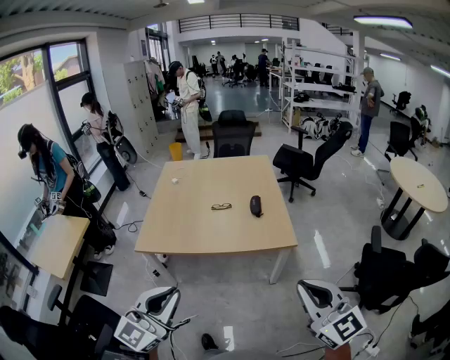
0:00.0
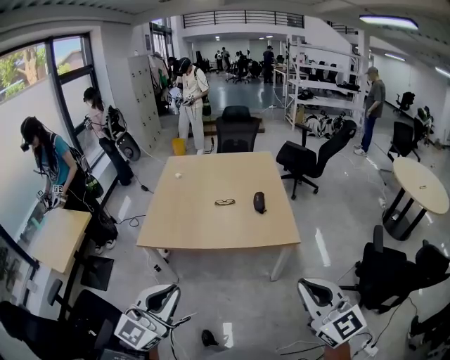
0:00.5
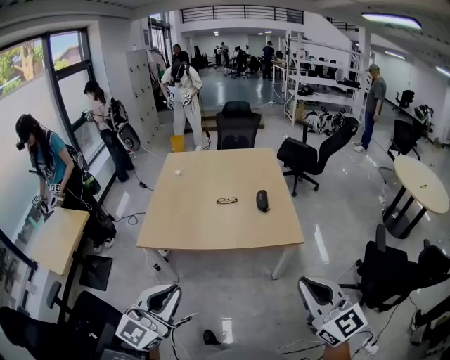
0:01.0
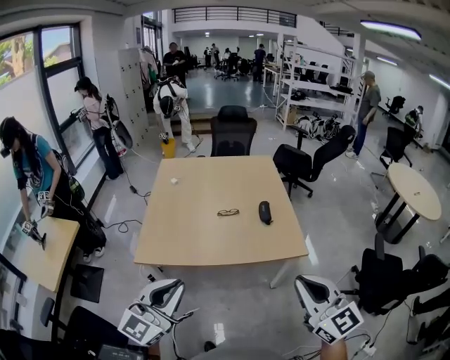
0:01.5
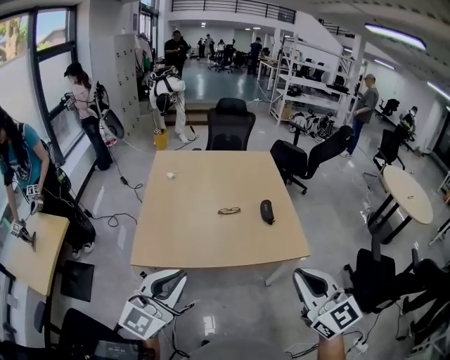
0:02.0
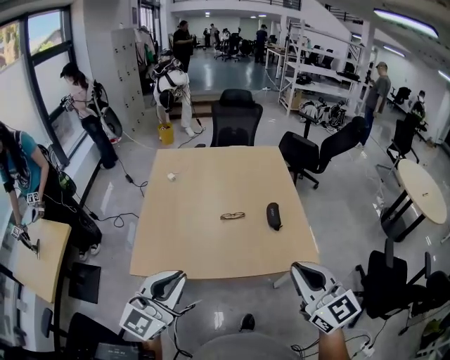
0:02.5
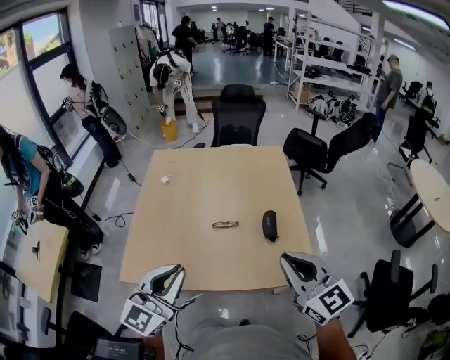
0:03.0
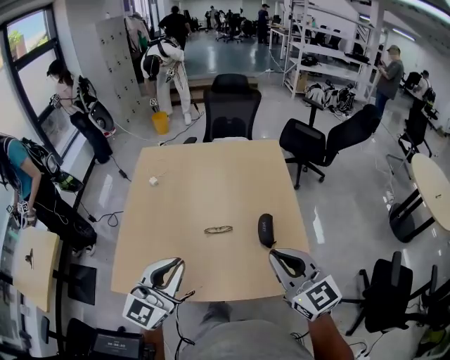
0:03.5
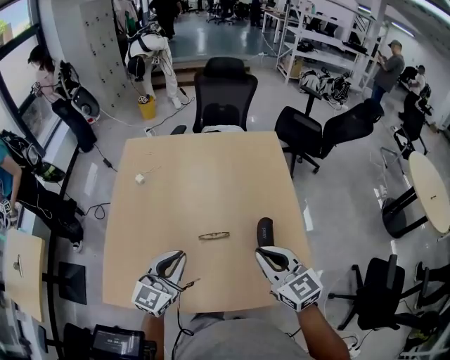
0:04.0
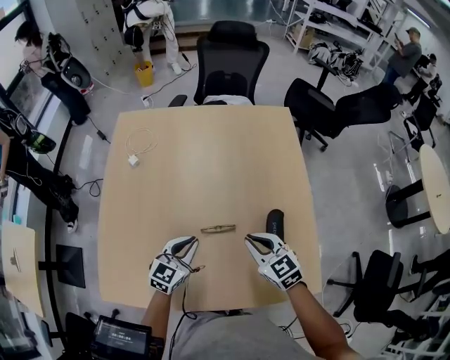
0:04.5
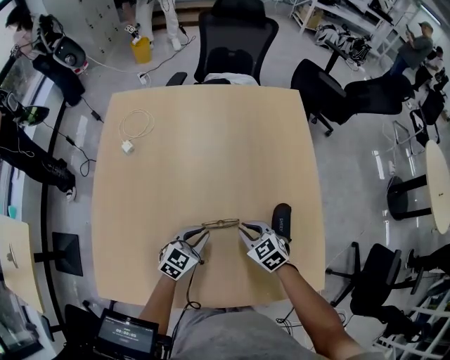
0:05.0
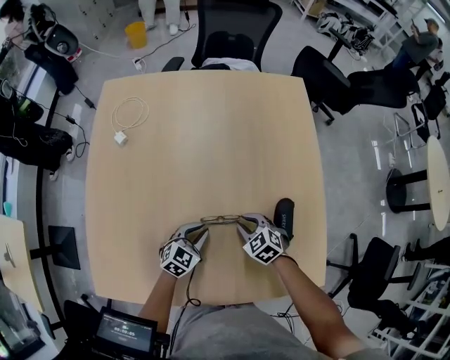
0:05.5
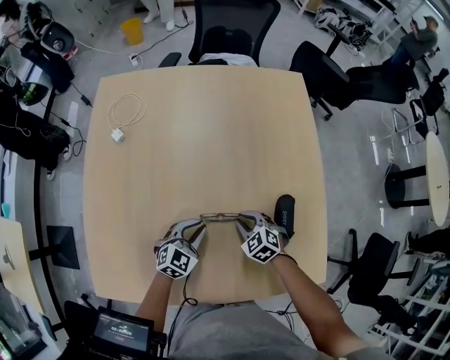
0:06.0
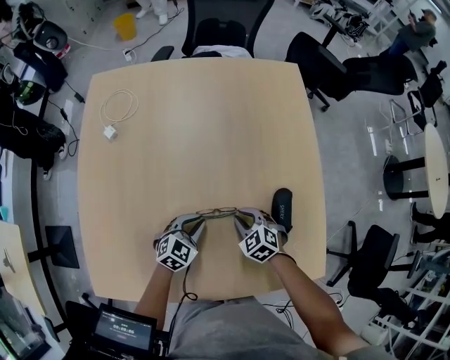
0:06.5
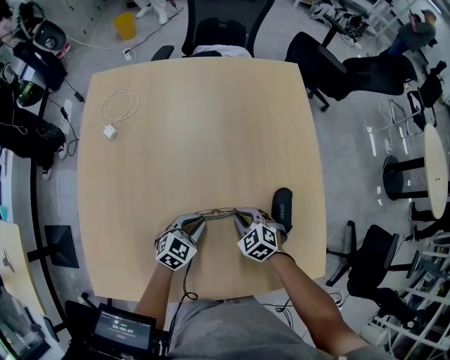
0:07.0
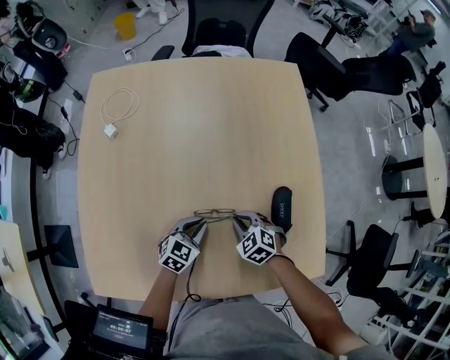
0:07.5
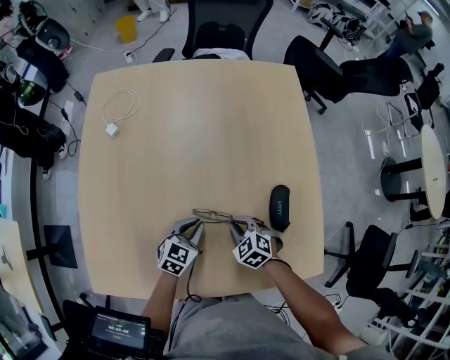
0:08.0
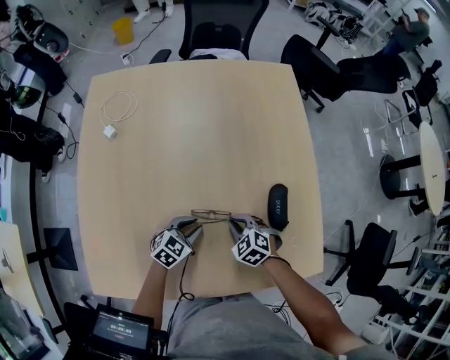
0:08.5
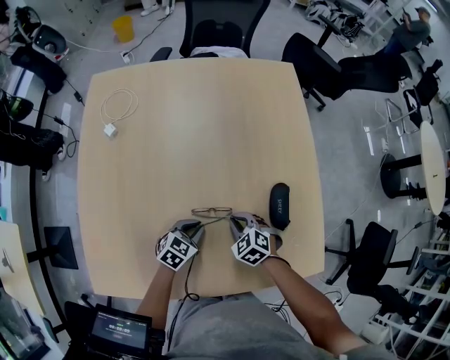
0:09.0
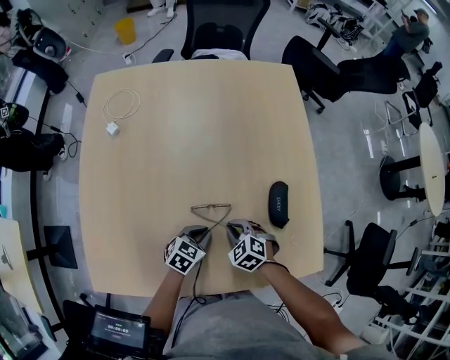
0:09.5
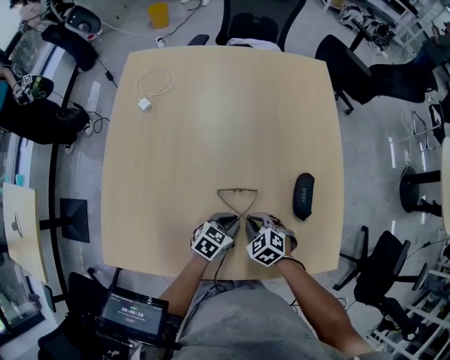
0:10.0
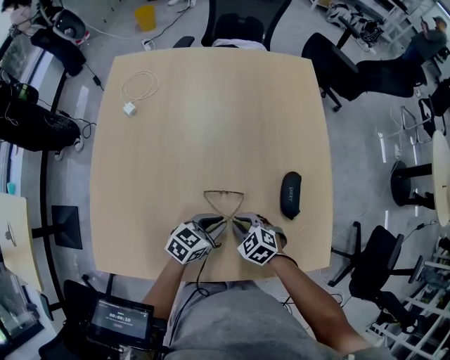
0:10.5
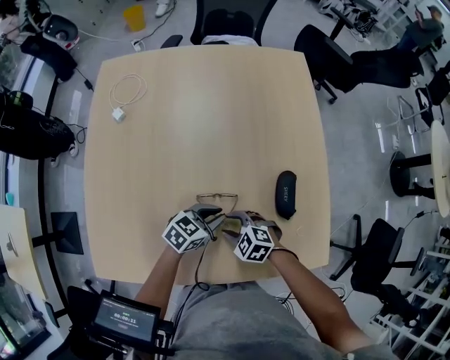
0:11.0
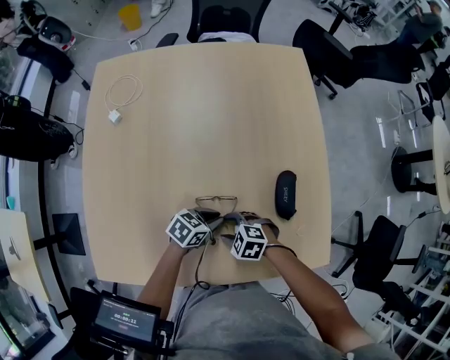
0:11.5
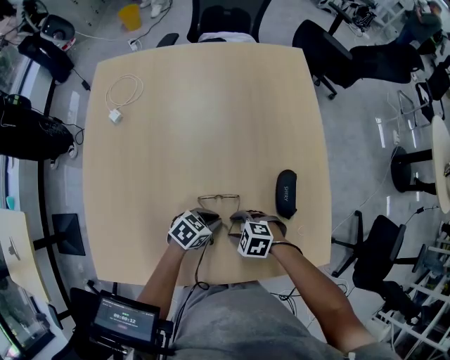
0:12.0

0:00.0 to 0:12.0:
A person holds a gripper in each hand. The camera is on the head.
0:00.0 to 0:02.0: The left gripper moves forward and to the left, some 30 cm; the right gripper travels to the left and forward by approximately 30 cm.
0:02.0 to 0:04.0: The two grippers travel together, forward, some 50 cm. The grippers both shift downward by roughly 20 cm.
0:04.0 to 0:06.0: The grippers both shift downward and forward by roughly 35 cm. The right gripper tips its fingers downward by about 40 degrees, while the left gripper swivels some 30 degrees.
0:06.0 to 0:08.0: There are only small adjustments of the grippers.
0:08.0 to 0:10.0: The left gripper goes approximately 10 cm to the right and backward. Meanwhile the right gripper is displaced backward by approximately 5 cm.
0:10.0 to 0:12.0: The right gripper rotates approximately 30 degrees, and opens up.

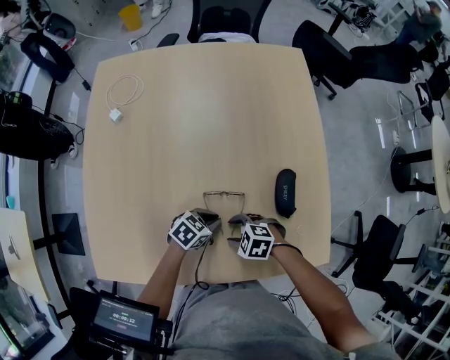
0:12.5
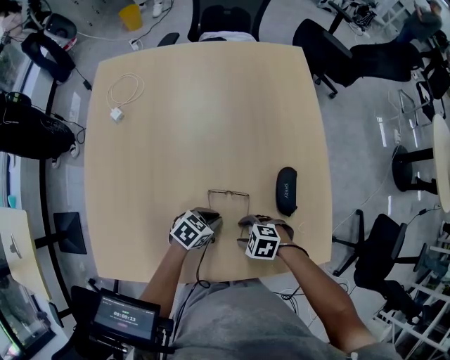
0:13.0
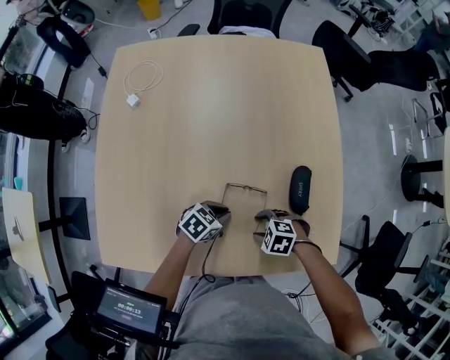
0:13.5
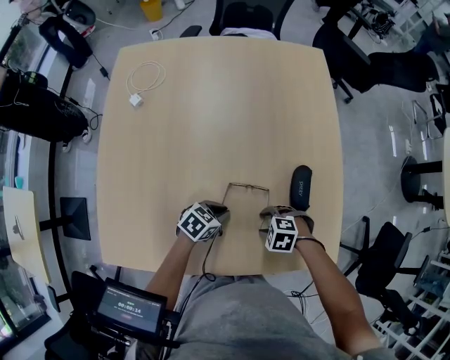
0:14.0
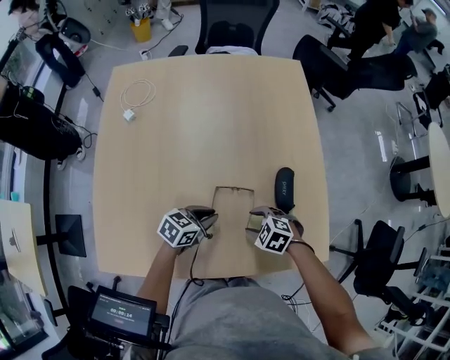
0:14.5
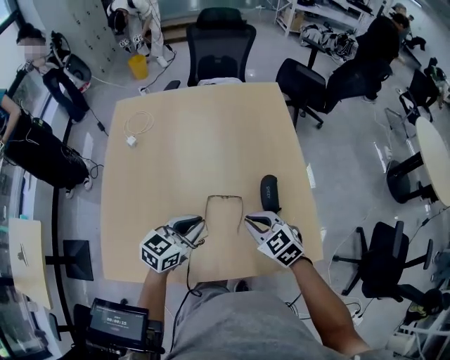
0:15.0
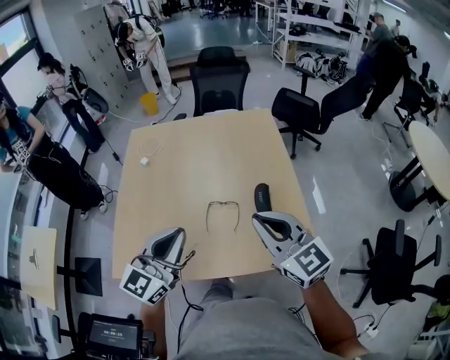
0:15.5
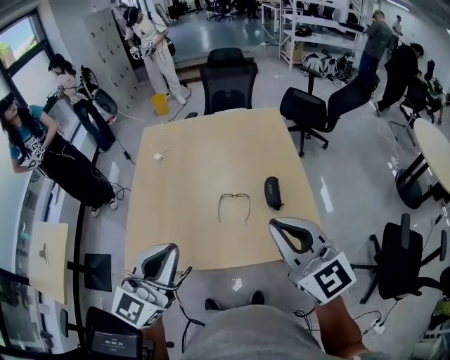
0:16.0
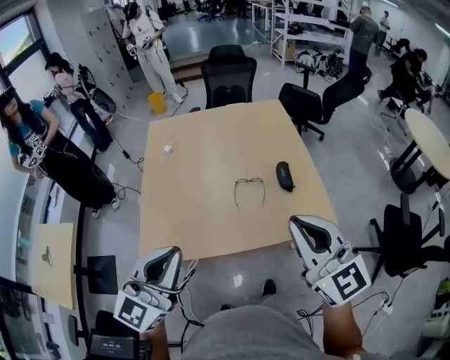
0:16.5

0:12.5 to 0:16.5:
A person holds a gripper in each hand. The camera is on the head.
0:12.5 to 0:14.5: The right gripper shifts by about 5 cm. Meanwhile the left gripper travels upward by approximately 5 cm.
0:14.5 to 0:16.5: Both grippers move upward, approximately 50 cm. The right gripper angles its fingers upward, by some 70 degrees, and closes its fingers. The left gripper points its fingers about 40 degrees further upward.

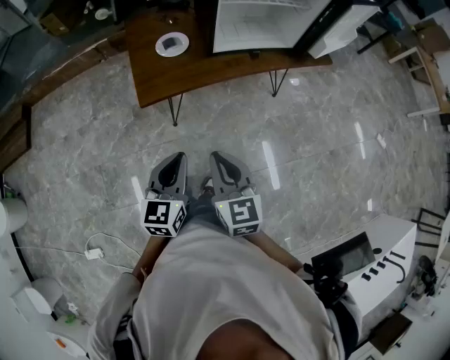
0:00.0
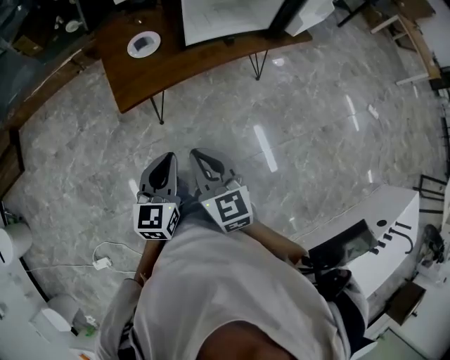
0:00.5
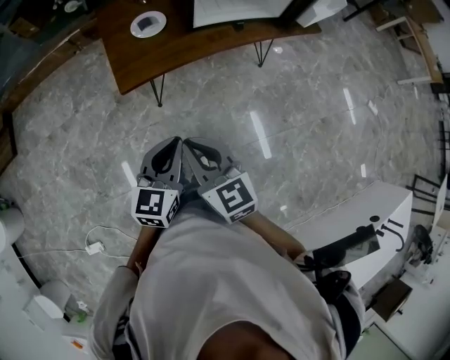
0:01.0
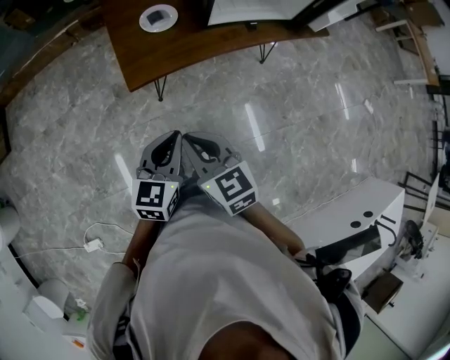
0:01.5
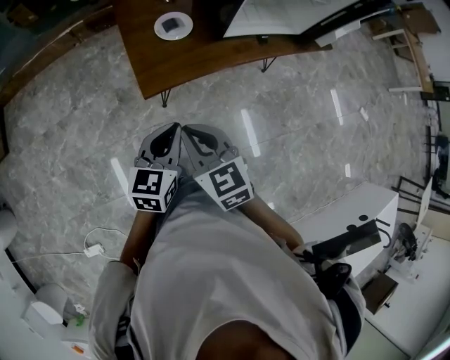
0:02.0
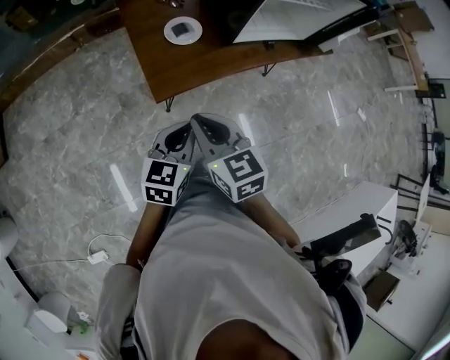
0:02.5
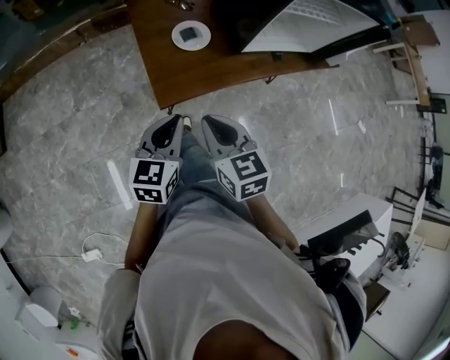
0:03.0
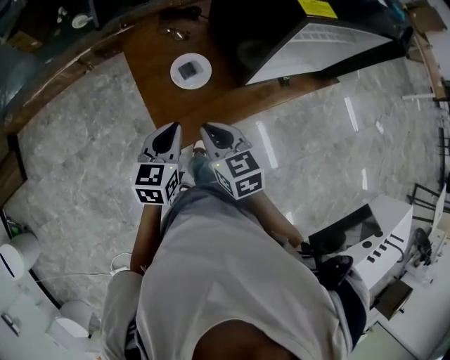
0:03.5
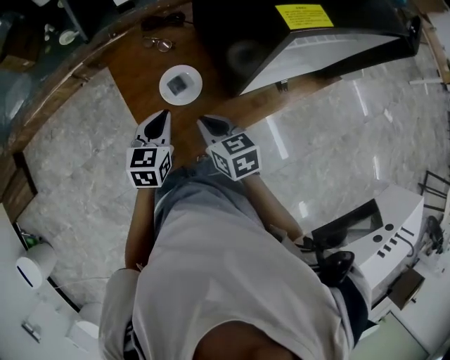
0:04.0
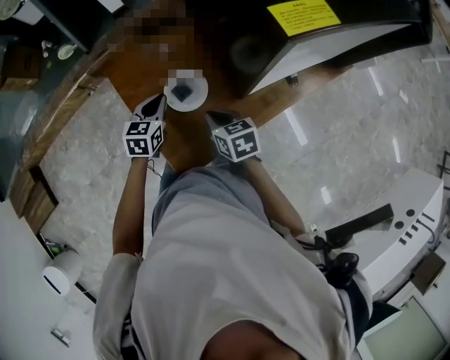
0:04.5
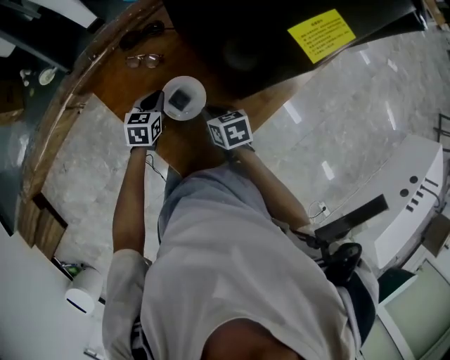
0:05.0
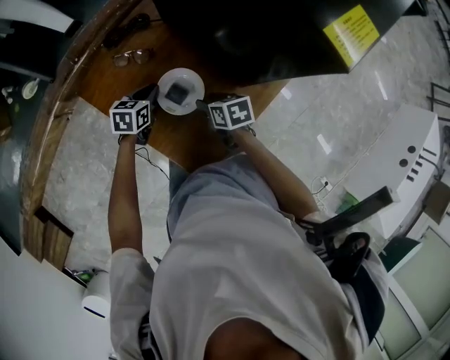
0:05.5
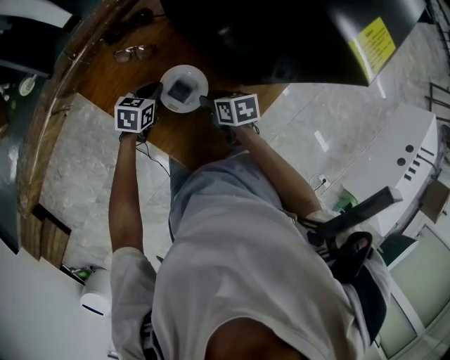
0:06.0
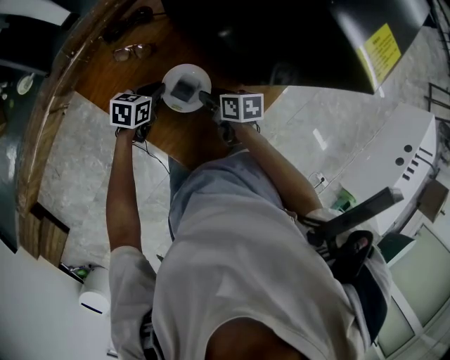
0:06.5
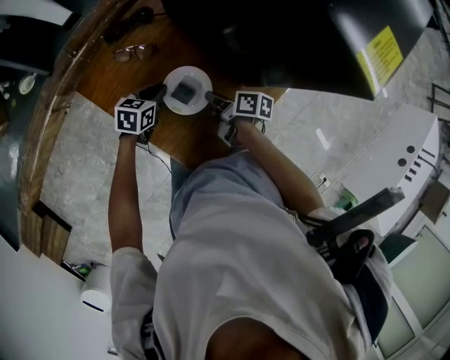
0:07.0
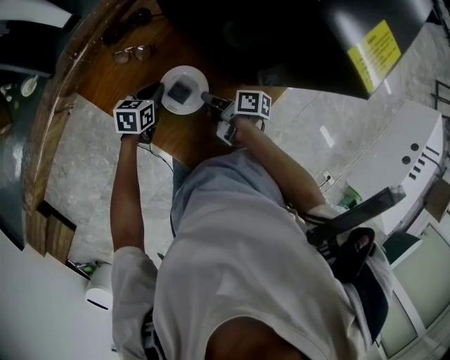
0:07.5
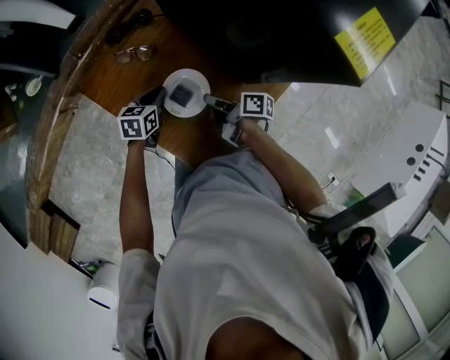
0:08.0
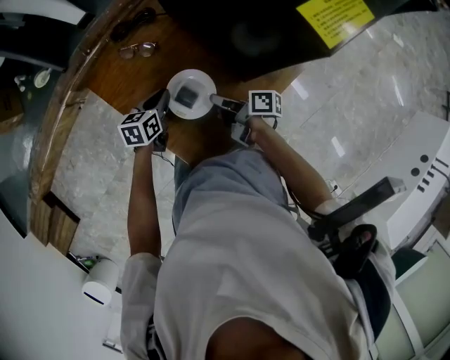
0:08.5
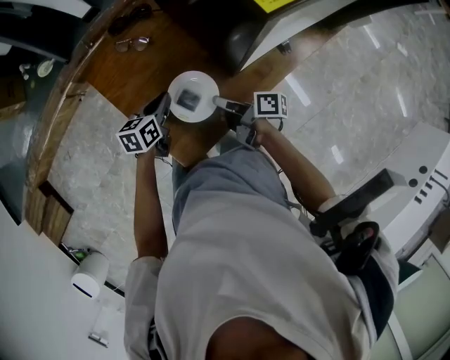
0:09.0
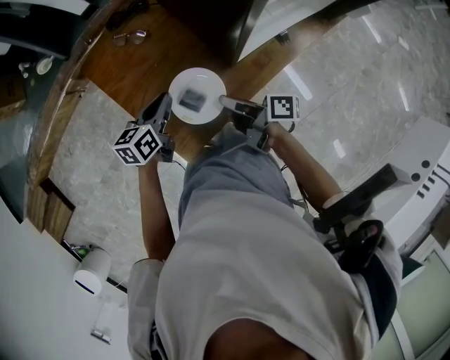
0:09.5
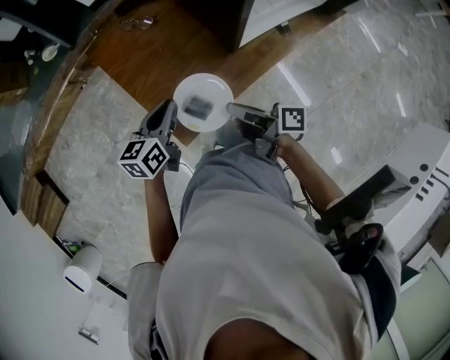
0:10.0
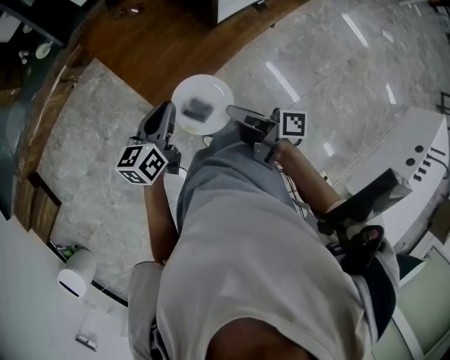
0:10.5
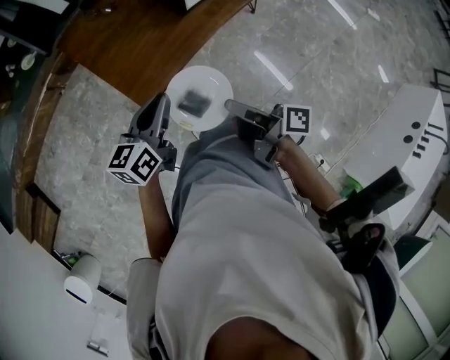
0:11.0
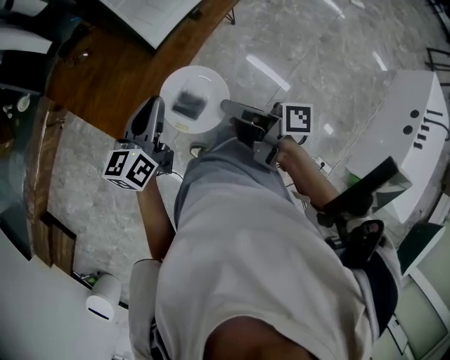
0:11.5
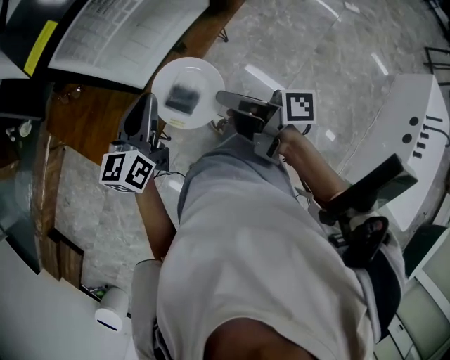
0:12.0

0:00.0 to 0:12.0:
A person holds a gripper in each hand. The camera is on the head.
0:00.0 to 0:02.0: The two grippers go about 25 cm to the left and forward.
0:02.0 to 0:04.0: Both grippers are carried forward, some 50 cm. The right gripper turns by some 20 degrees.
0:04.0 to 0:06.0: The left gripper goes some 30 cm forward and downward, and rotates roughly 40 degrees. The right gripper travels downward and forward by approximately 25 cm, swivels about 40 degrees, and opens up.
0:06.0 to 0:08.0: The right gripper angles its fingers upward, by about 30 degrees, and closes up.
0:08.0 to 0:10.0: The two grippers go some 35 cm backward and upward. The left gripper rotates approximately 30 degrees, while the right gripper rotates about 20 degrees.
0:10.0 to 0:12.0: Both grippers travel together to the right, roughly 40 cm. The left gripper swivels some 20 degrees.
